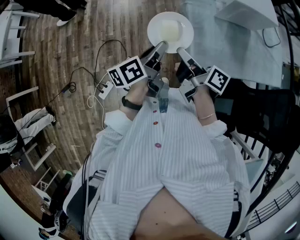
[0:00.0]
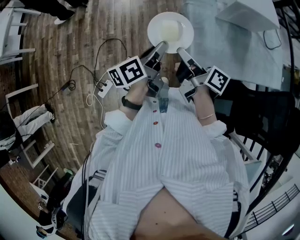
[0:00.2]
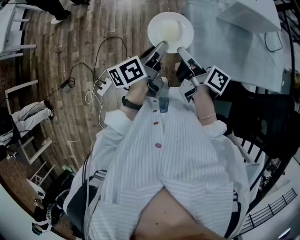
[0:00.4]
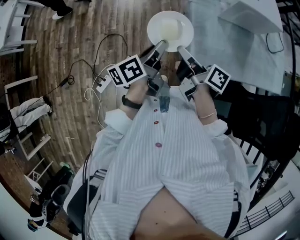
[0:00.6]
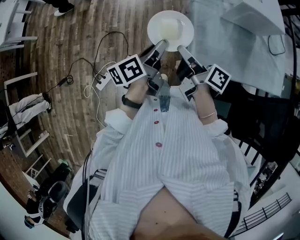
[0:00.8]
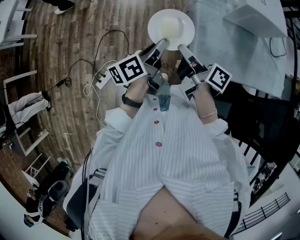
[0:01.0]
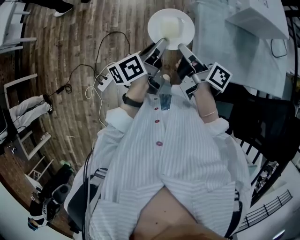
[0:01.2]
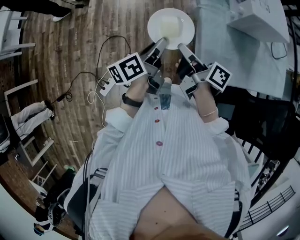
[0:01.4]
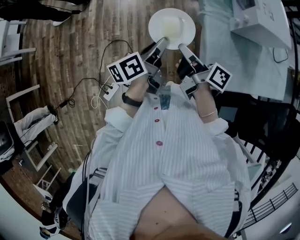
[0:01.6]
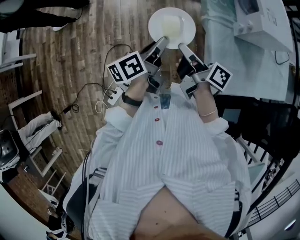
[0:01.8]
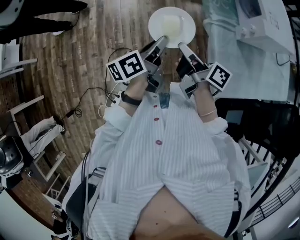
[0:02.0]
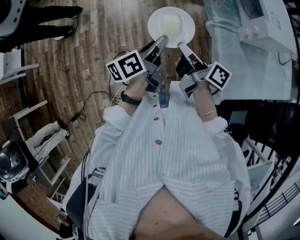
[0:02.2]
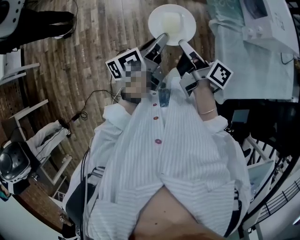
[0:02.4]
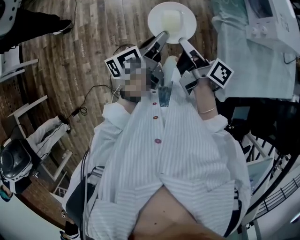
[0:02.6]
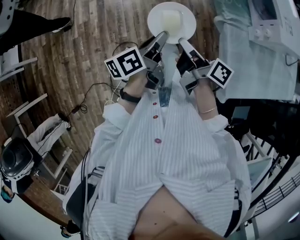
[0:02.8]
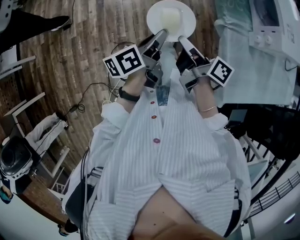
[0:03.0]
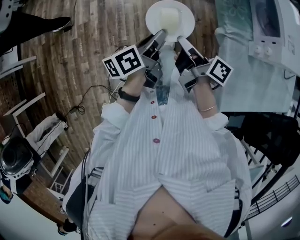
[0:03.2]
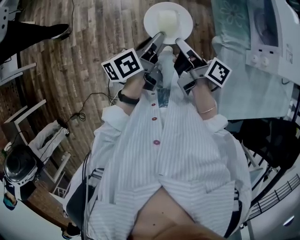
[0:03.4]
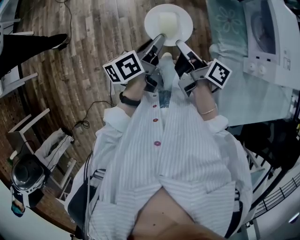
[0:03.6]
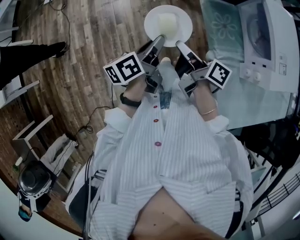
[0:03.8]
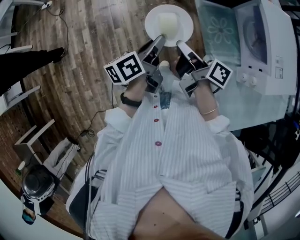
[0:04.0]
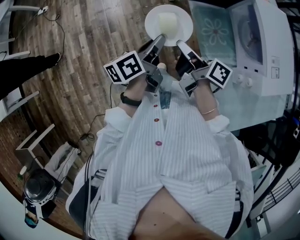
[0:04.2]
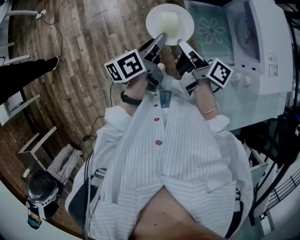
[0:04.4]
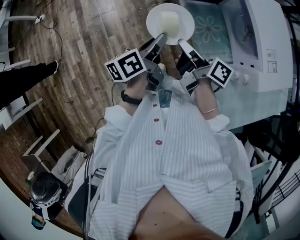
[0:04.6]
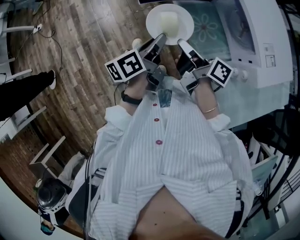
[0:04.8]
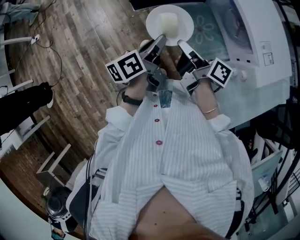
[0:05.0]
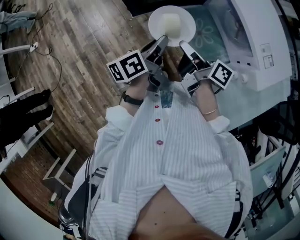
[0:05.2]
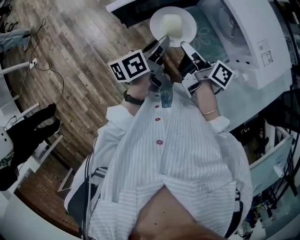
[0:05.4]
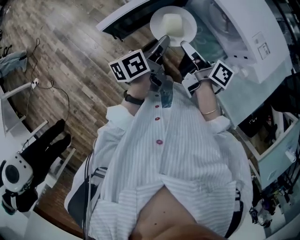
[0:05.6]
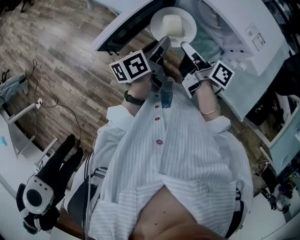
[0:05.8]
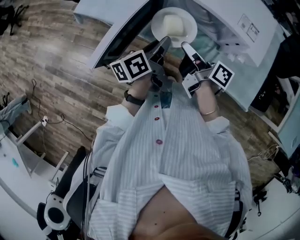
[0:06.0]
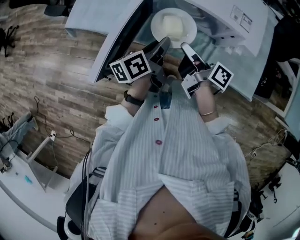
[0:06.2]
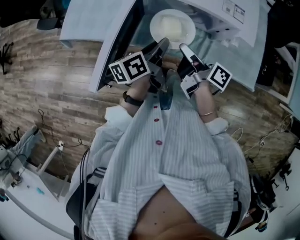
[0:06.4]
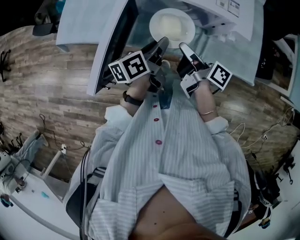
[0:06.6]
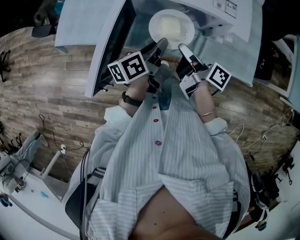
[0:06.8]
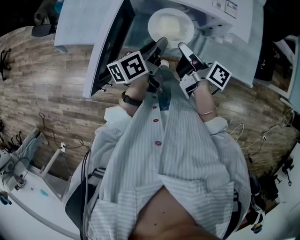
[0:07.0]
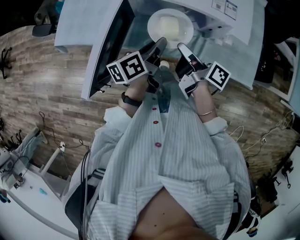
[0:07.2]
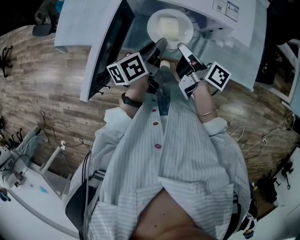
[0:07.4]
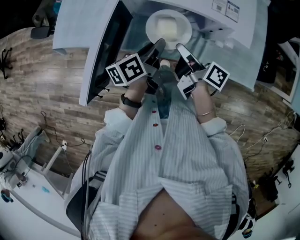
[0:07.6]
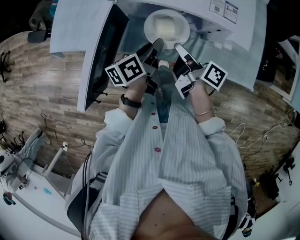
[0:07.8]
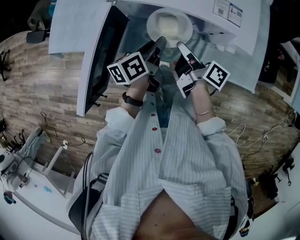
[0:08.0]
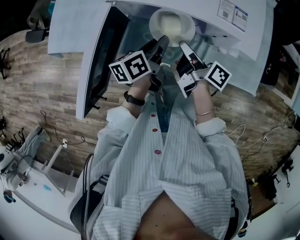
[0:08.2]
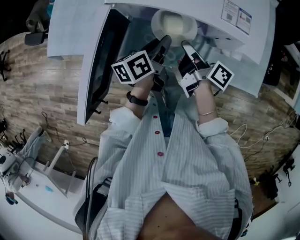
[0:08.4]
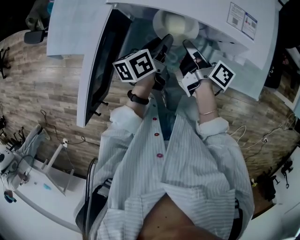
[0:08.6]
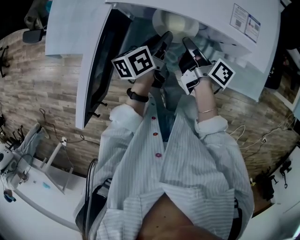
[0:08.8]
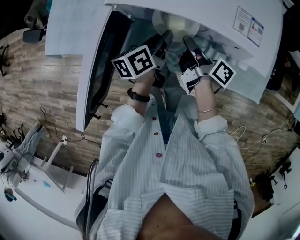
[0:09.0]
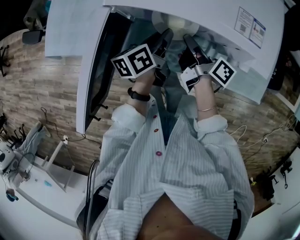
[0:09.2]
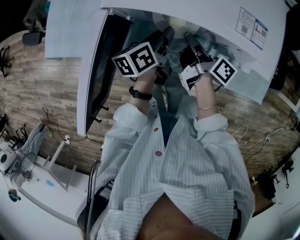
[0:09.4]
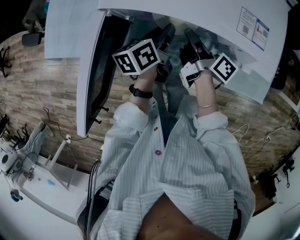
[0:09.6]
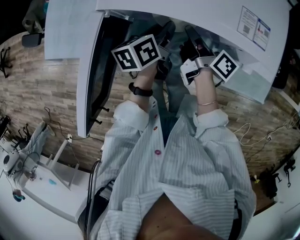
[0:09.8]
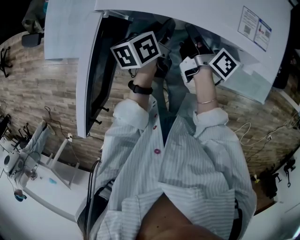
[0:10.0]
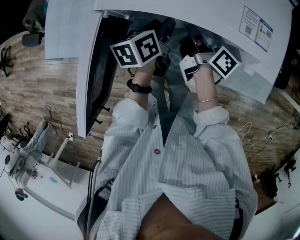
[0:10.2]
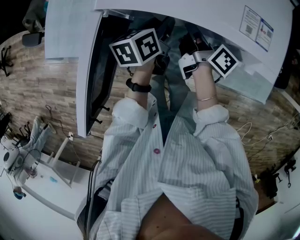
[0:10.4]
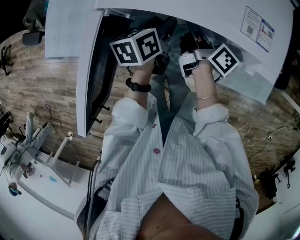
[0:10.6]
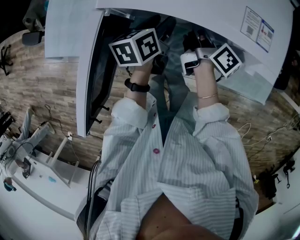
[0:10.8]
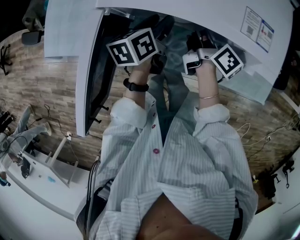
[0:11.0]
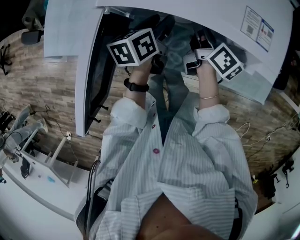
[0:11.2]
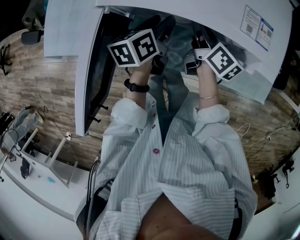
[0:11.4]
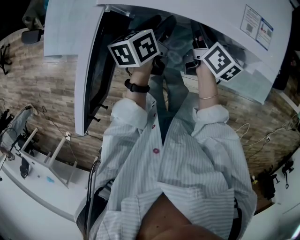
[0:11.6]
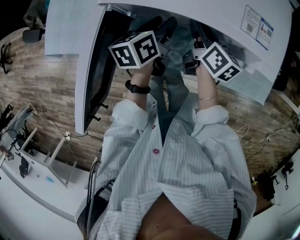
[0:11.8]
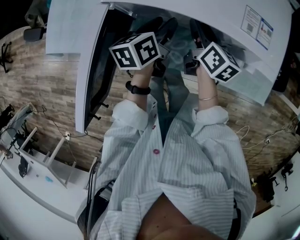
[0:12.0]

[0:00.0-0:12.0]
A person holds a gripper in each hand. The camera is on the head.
0:00.0 to 0:01.6: Both grippers move forward and to the left, some 10 cm.
0:01.6 to 0:03.0: Both grippers travel together forward and to the left, about 15 cm.
0:03.0 to 0:04.4: The two grippers go some 25 cm forward.
0:04.4 to 0:06.0: The left gripper shifts by approximately 25 cm, and rotates some 50 degrees, while the right gripper changes place by roughly 20 cm, and rotates about 50 degrees.
0:06.0 to 0:07.6: Both grippers travel together to the right, roughly 5 cm.
0:07.6 to 0:09.0: Both grippers move forward and downward, about 10 cm.
0:09.0 to 0:10.4: Both grippers travel together forward, approximately 5 cm.
0:10.4 to 0:12.0: The right gripper changes its angle by some 40 degrees, and opens.

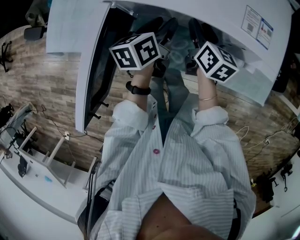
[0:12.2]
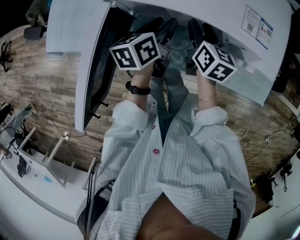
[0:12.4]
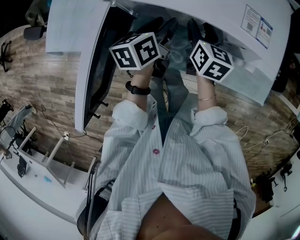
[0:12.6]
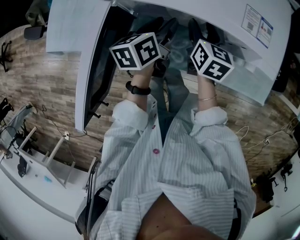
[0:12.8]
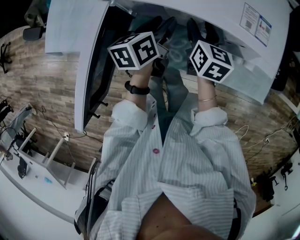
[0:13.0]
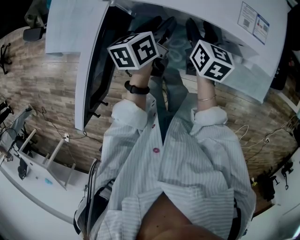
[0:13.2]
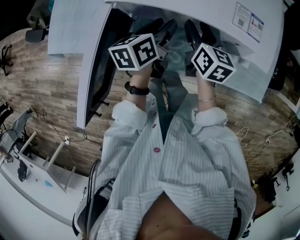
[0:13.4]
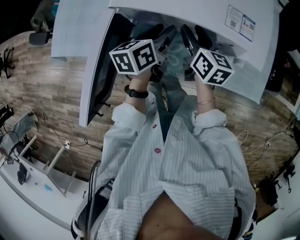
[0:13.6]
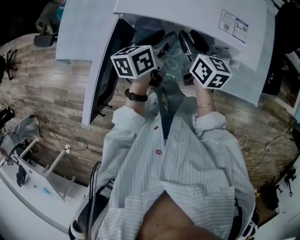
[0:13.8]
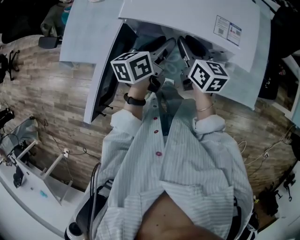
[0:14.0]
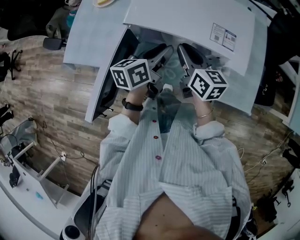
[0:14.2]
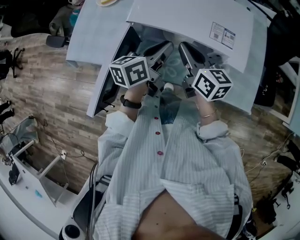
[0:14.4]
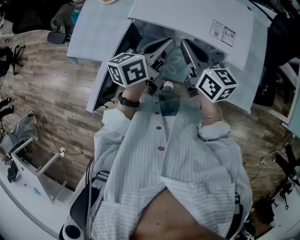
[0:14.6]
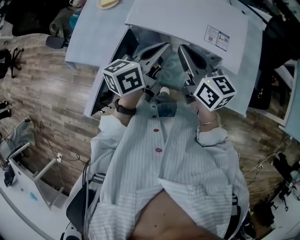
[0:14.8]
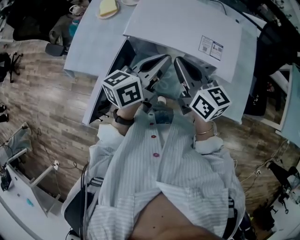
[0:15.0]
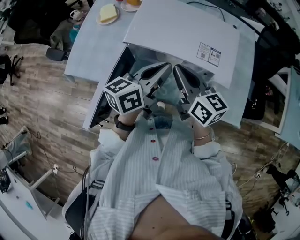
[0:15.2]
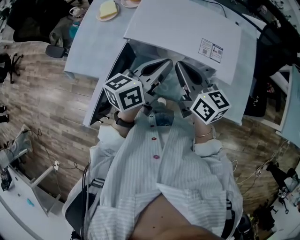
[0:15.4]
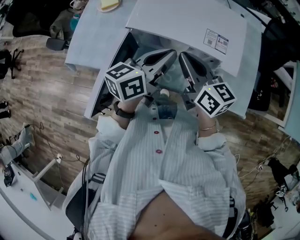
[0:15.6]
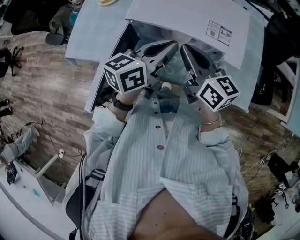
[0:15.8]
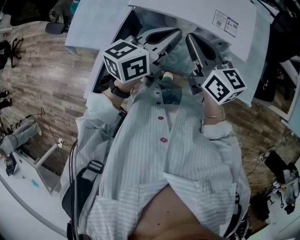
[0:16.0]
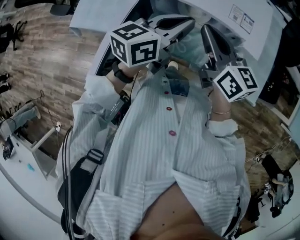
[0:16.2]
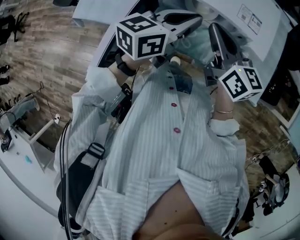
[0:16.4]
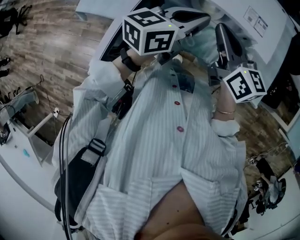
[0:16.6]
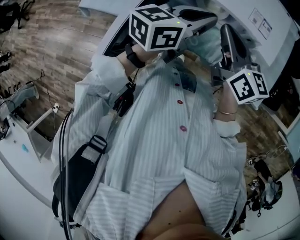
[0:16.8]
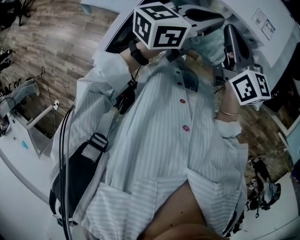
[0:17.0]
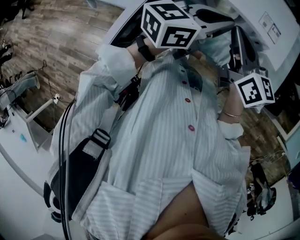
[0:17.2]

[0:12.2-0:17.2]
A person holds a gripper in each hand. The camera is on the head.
0:12.2 to 0:13.8: Both grippers travel together upward, approximately 5 cm.
0:13.8 to 0:15.6: The grippers both shift upward by roughly 15 cm. The right gripper closes. The left gripper rotates some 20 degrees, and closes.
0:15.6 to 0:17.2: There are only small adjustments of the grippers.

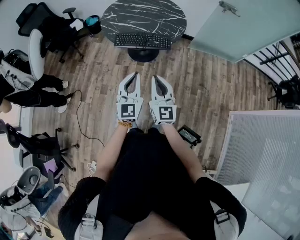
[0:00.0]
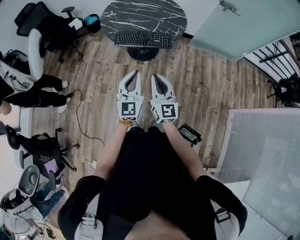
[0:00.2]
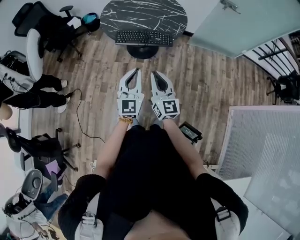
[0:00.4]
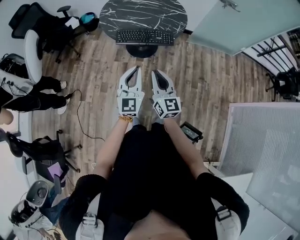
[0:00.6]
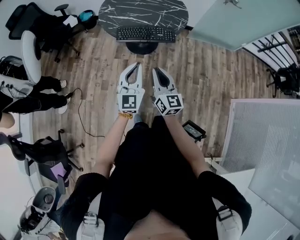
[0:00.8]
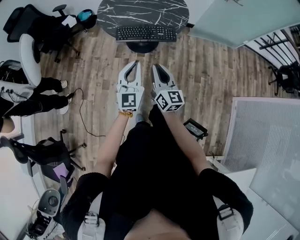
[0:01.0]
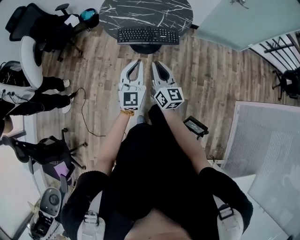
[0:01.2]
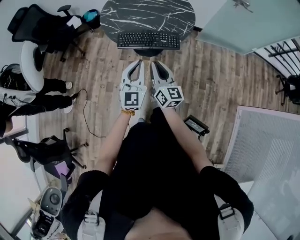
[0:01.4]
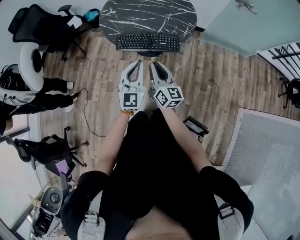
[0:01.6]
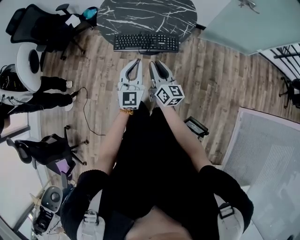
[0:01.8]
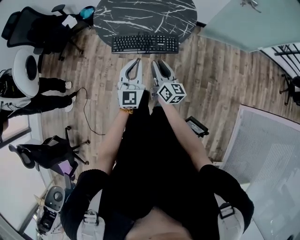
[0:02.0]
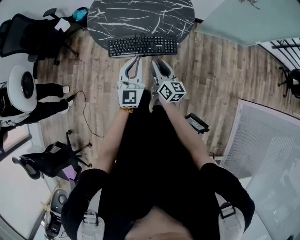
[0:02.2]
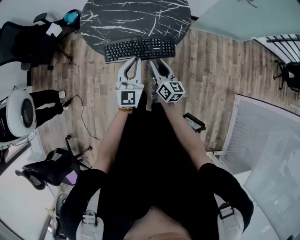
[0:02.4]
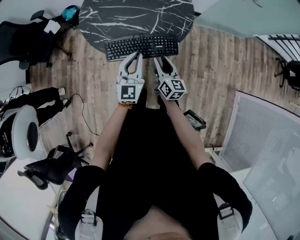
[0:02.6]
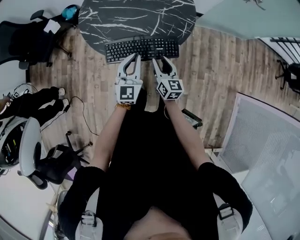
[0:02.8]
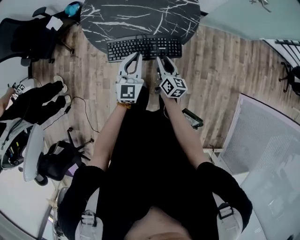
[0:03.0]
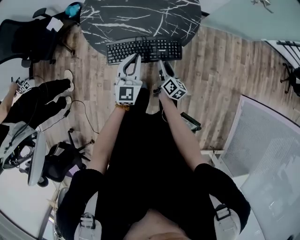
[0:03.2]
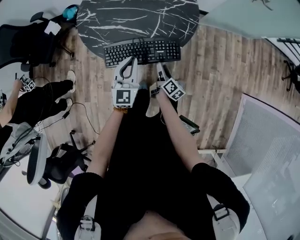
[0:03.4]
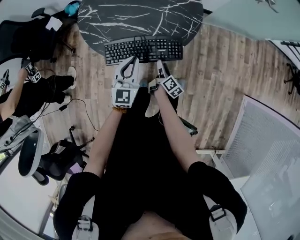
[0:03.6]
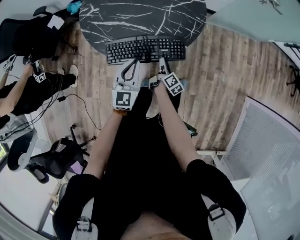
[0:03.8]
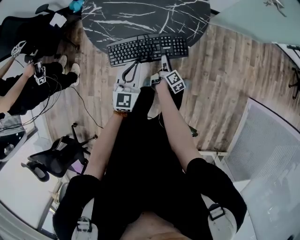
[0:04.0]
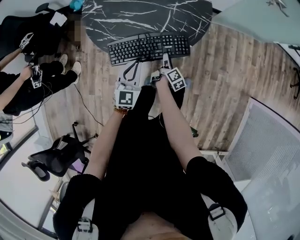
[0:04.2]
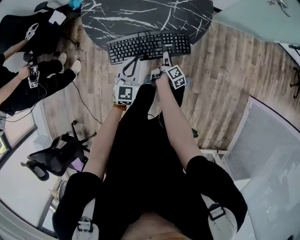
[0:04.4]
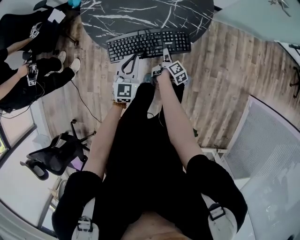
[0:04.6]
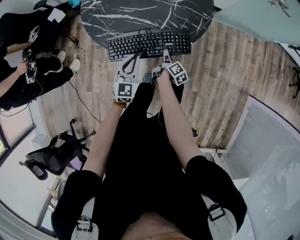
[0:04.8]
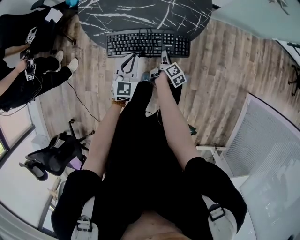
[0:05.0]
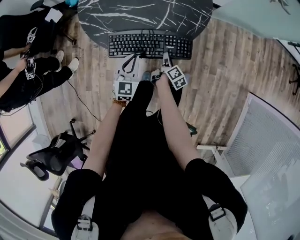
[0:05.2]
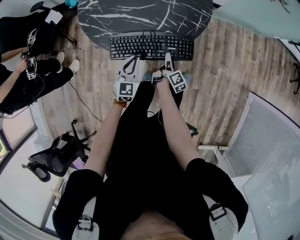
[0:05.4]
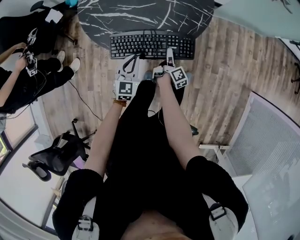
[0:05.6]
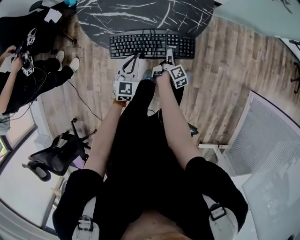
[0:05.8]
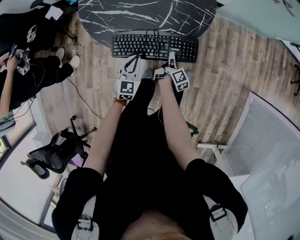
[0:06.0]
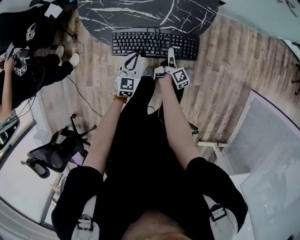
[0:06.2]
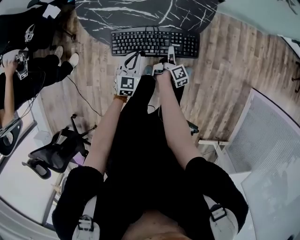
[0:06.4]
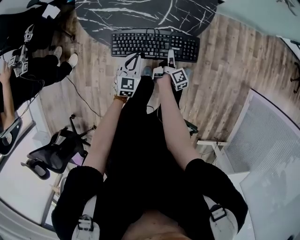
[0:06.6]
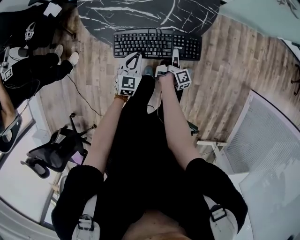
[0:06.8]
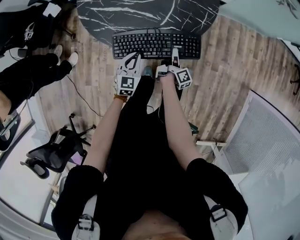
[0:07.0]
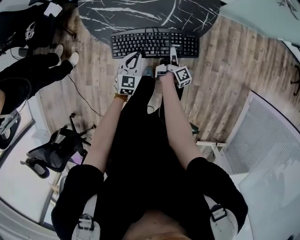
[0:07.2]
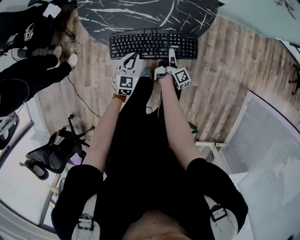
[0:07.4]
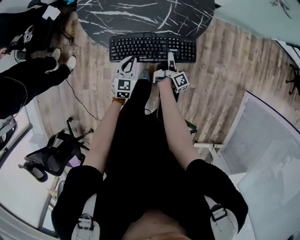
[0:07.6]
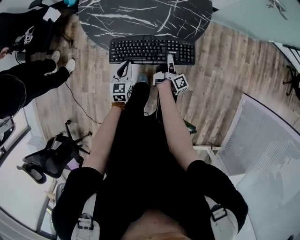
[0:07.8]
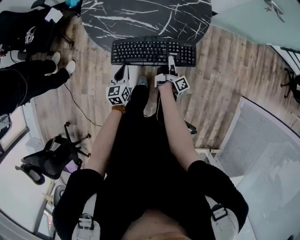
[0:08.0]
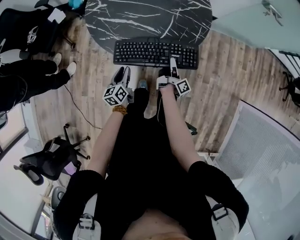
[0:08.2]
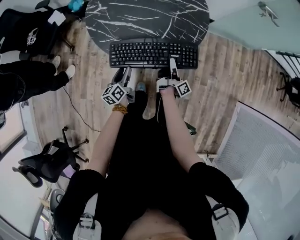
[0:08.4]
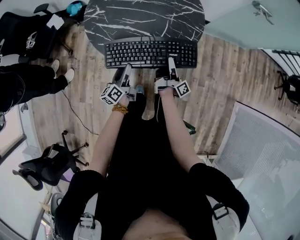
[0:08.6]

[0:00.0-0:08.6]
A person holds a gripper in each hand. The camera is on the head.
0:00.0 to 0:01.4: Both grippers move forward, approximately 15 cm. The right gripper changes its angle by approximately 30 degrees.
0:01.4 to 0:02.8: The two grippers go roughly 25 cm forward and downward. The right gripper opens.
0:02.8 to 0:04.4: The left gripper is displaced downward by about 10 cm. Meanwhile the right gripper goes roughly 20 cm downward, and rolls clockwise, seen from behind, by some 60 degrees.
0:04.4 to 0:05.8: The left gripper goes some 5 cm downward.
0:05.8 to 0:07.2: There are only small adjustments of the grippers.
0:07.2 to 0:08.6: The left gripper shifts about 10 cm to the left and upward, twists approximately 60 degrees counterclockwise, seen from behind, and opens. The right gripper moves upward, approximately 15 cm, and rotates roughly 20 degrees.
